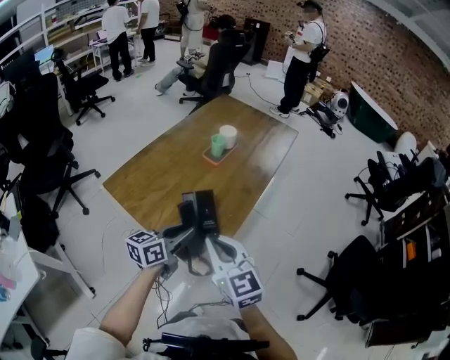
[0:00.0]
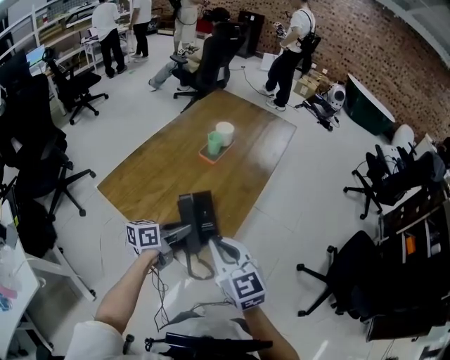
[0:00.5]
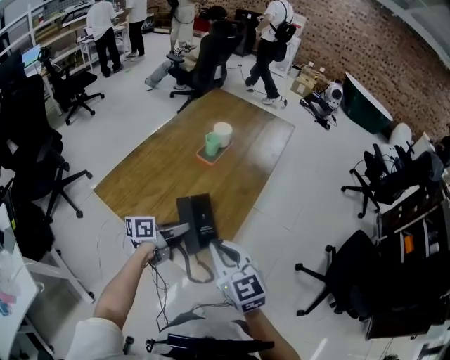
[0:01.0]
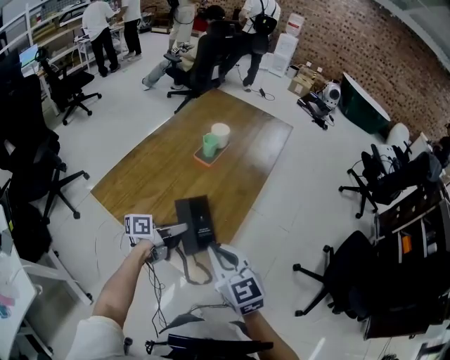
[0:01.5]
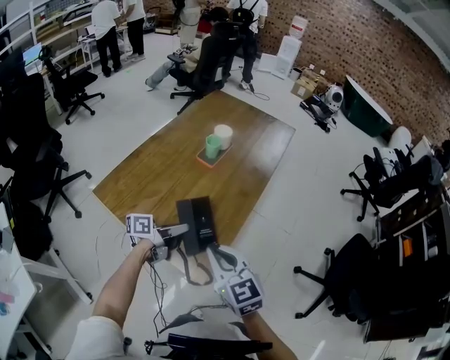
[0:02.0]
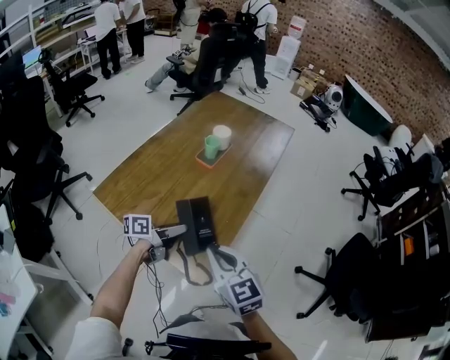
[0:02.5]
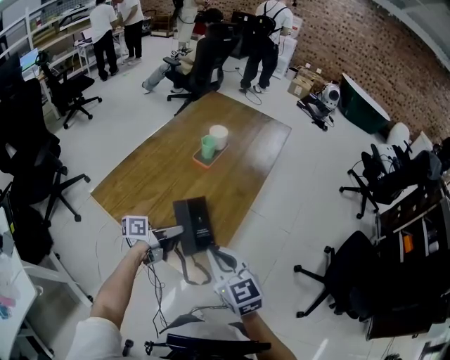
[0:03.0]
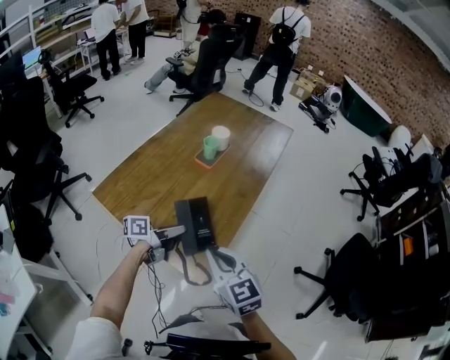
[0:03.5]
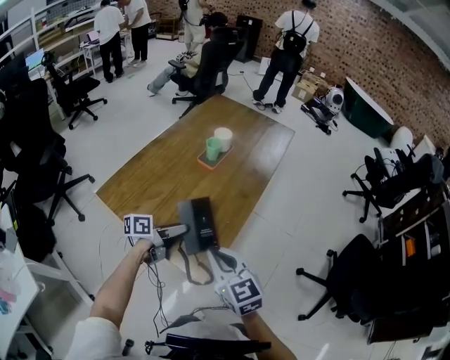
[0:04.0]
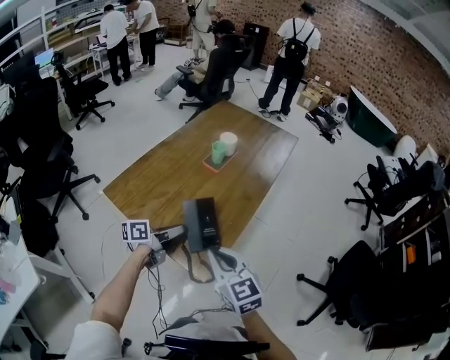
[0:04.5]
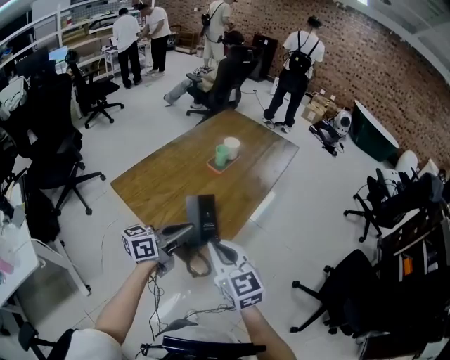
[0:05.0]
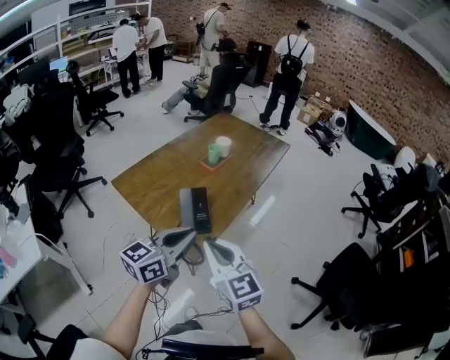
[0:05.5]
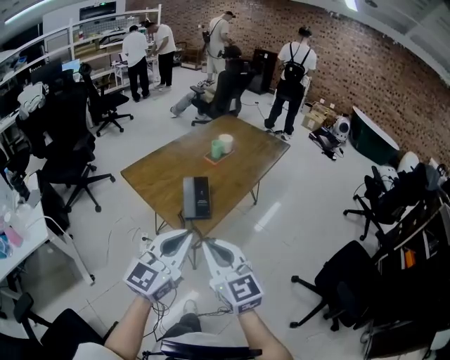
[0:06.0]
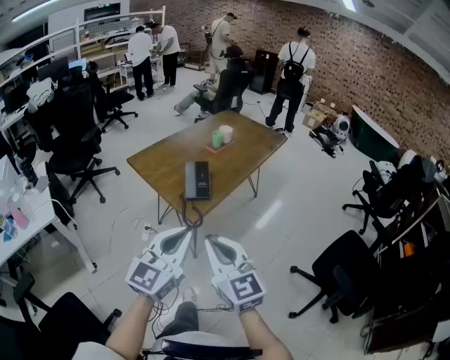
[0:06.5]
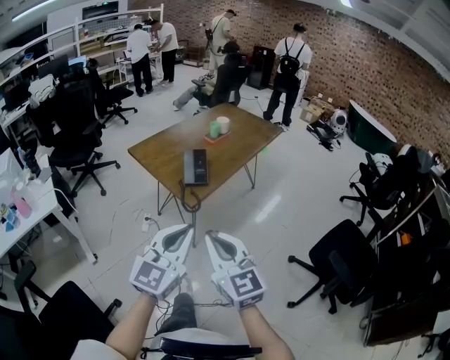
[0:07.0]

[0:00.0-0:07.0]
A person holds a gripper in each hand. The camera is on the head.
0:00.0 to 0:02.0: The left gripper travels downward and forward by roughly 10 cm, and changes its angle by roughly 30 degrees.
0:02.0 to 0:03.5: The grippers move only a little.
0:03.5 to 0:05.0: The left gripper goes approximately 20 cm upward and backward, rotates about 30 degrees, and closes its fingers; the right gripper heads upward, covering about 5 cm.
0:05.0 to 0:07.0: The two grippers go some 35 cm backward. The left gripper rolls clockwise, seen from behind, by roughly 50 degrees.

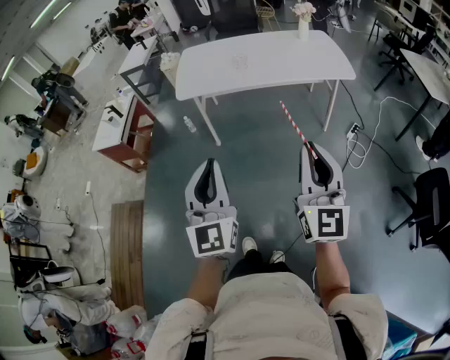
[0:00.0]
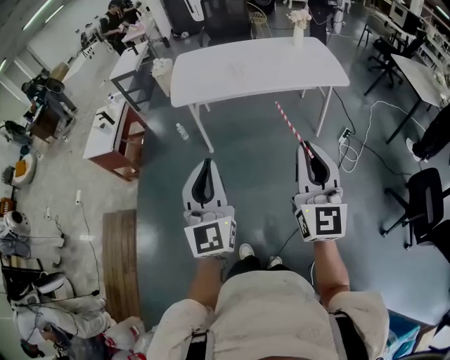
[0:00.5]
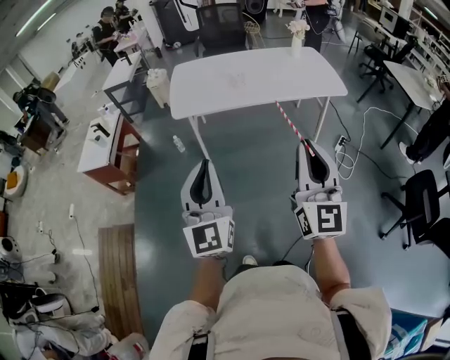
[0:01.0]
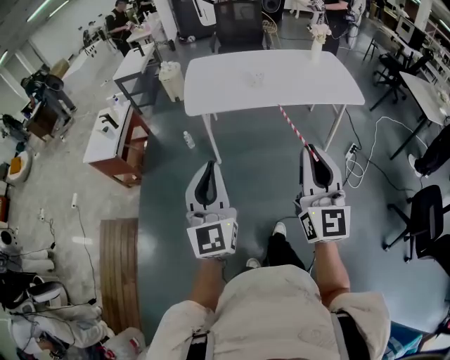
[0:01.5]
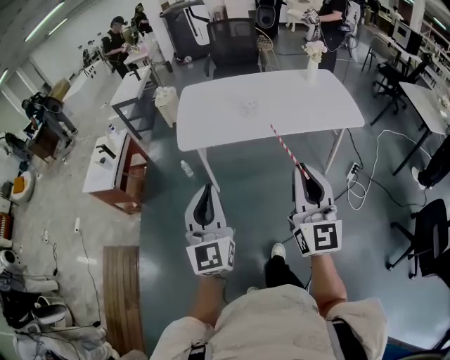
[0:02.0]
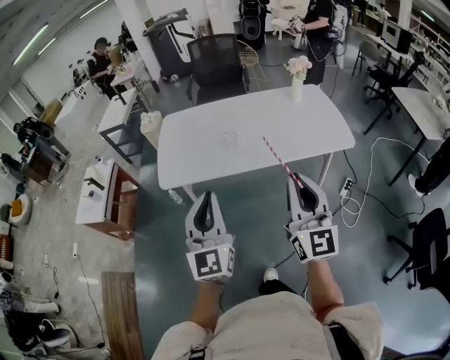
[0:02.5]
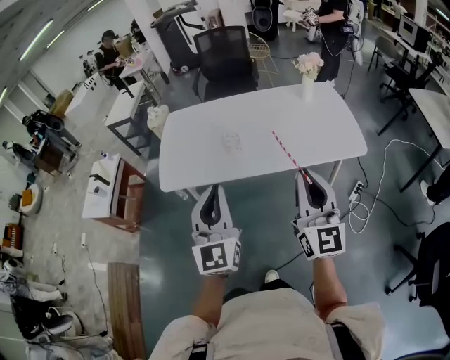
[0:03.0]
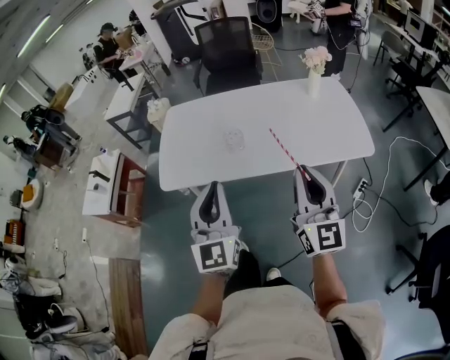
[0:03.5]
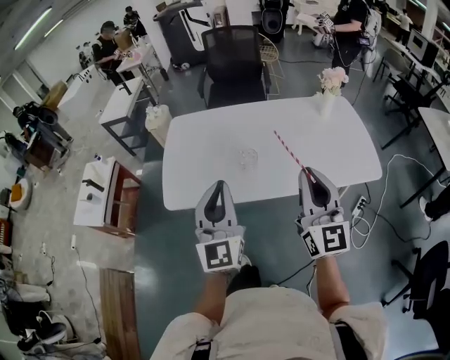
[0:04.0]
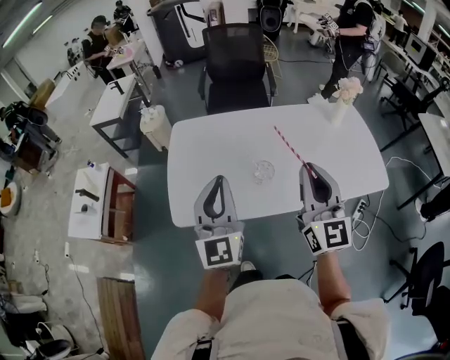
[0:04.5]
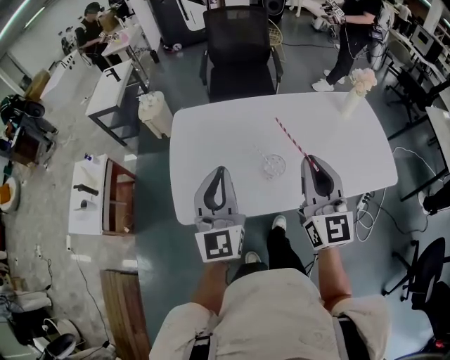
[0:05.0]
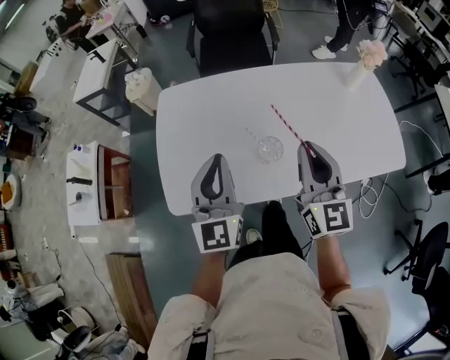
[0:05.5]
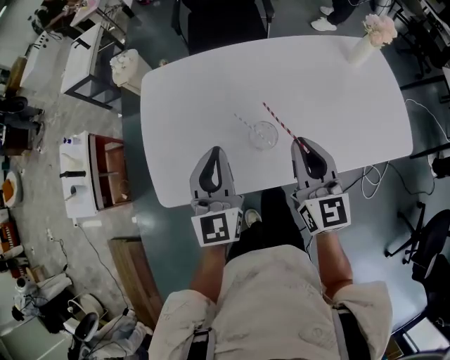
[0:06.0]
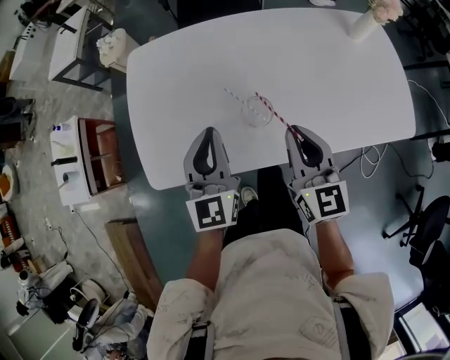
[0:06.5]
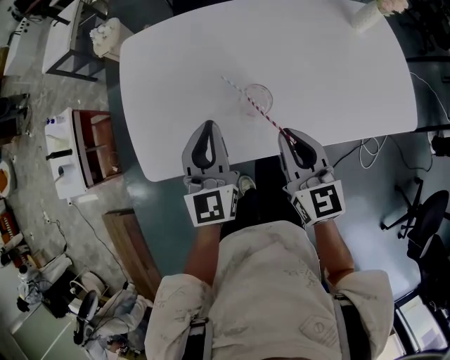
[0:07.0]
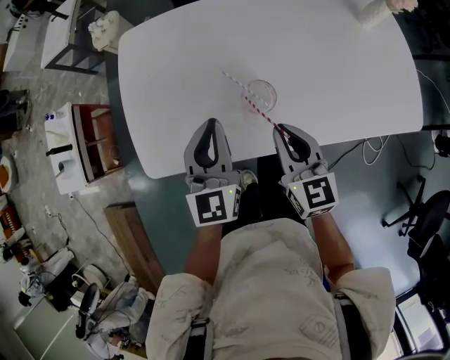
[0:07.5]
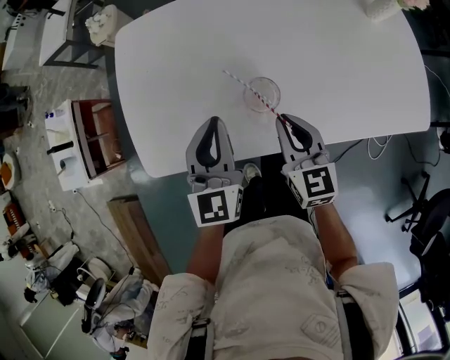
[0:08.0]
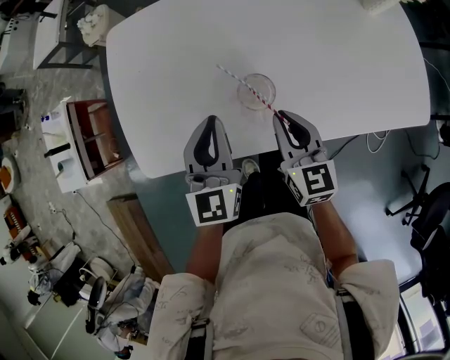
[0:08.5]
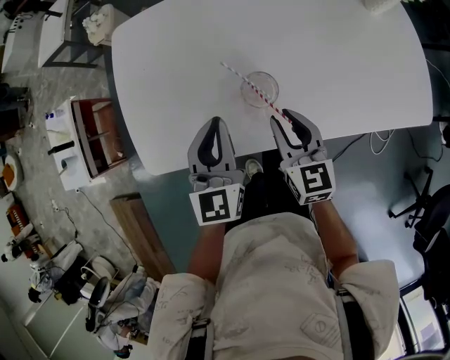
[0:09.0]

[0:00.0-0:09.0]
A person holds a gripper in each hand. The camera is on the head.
0:00.0 to 0:02.0: Both grippers move forward and to the left, some 25 cm.
0:02.0 to 0:04.5: The two grippers travel together, forward, approximately 50 cm.
0:04.5 to 0:07.0: The left gripper is displaced downward and forward by roughly 20 cm. Meanwhile the right gripper goes approximately 25 cm downward, and changes its angle by about 30 degrees.
0:07.0 to 0:09.0: The right gripper is displaced downward by about 10 cm.

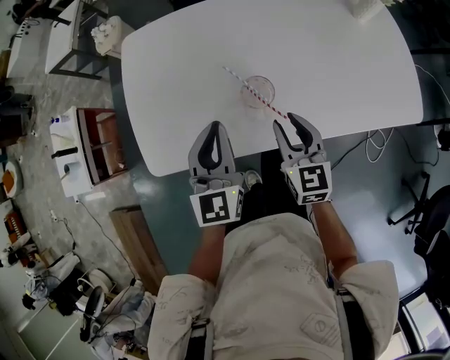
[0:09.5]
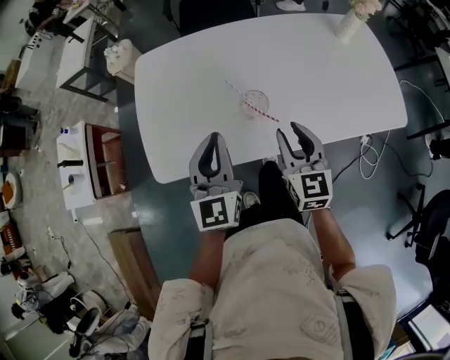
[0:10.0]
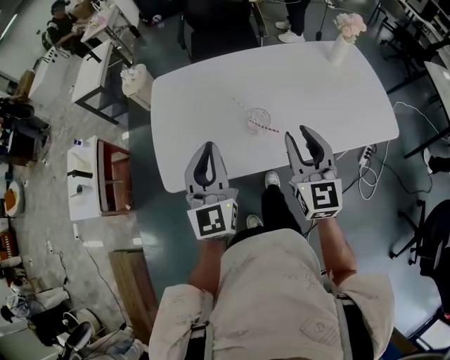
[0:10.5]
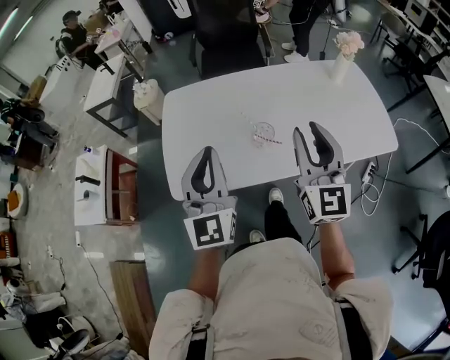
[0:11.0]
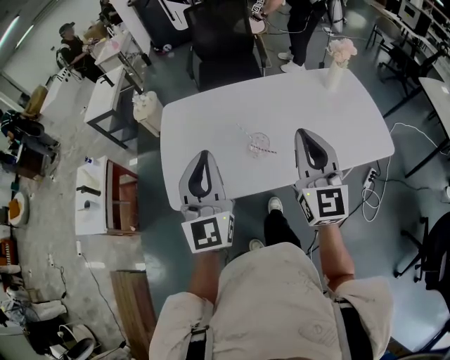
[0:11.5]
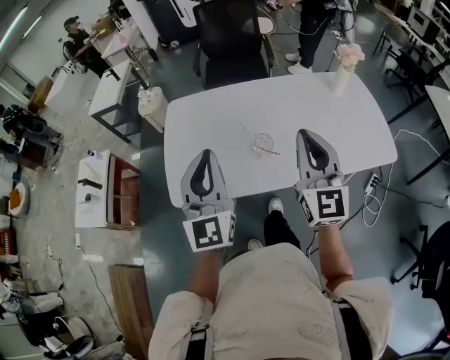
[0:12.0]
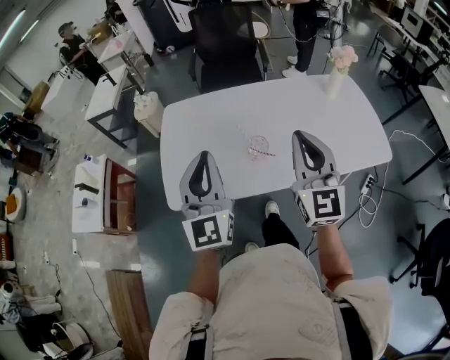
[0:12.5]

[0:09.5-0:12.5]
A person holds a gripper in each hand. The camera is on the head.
0:09.5 to 0:11.0: The right gripper heads upward, covering about 25 cm, and tips its fingers upward by about 30 degrees, while the left gripper travels upward and backward by some 20 cm, and swivels approximately 20 degrees.
0:11.0 to 0:12.5: The right gripper closes its fingers.

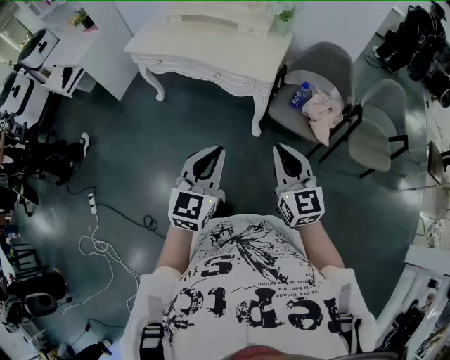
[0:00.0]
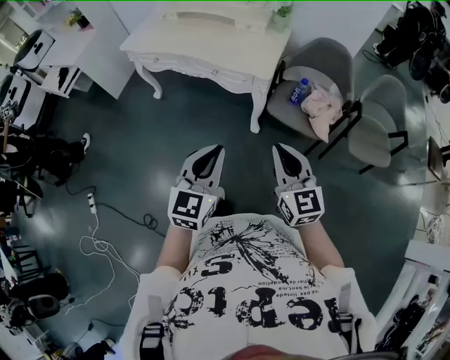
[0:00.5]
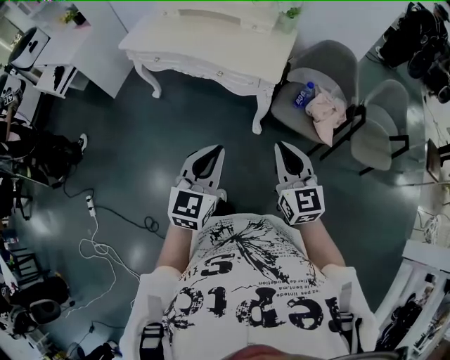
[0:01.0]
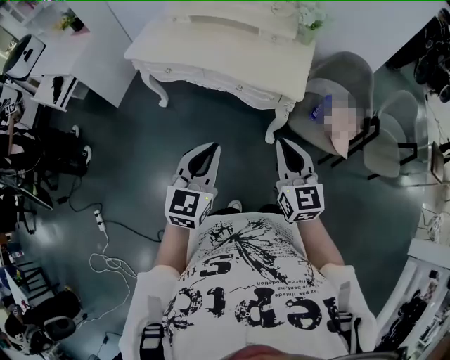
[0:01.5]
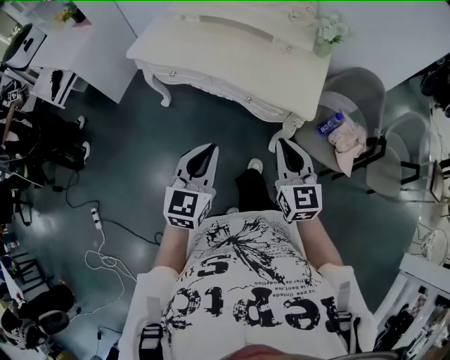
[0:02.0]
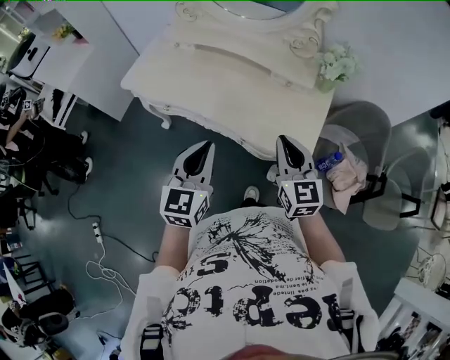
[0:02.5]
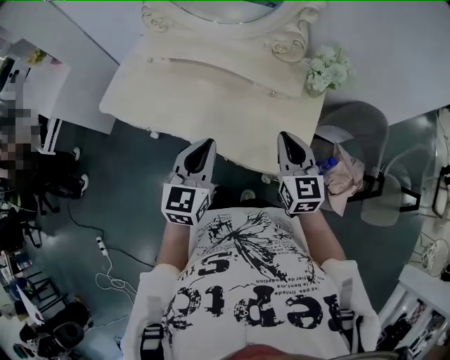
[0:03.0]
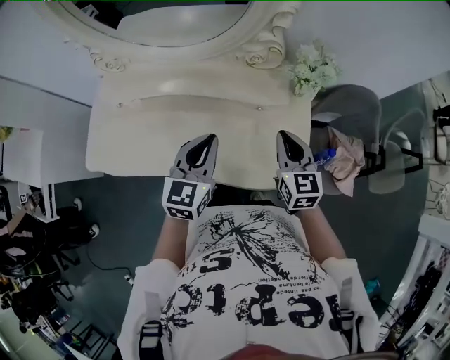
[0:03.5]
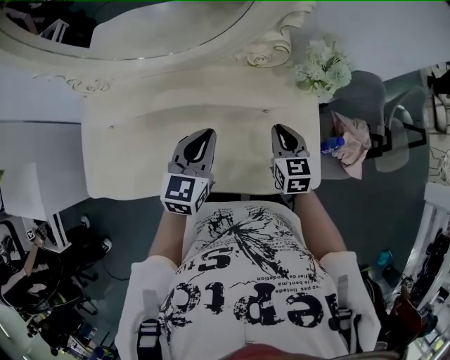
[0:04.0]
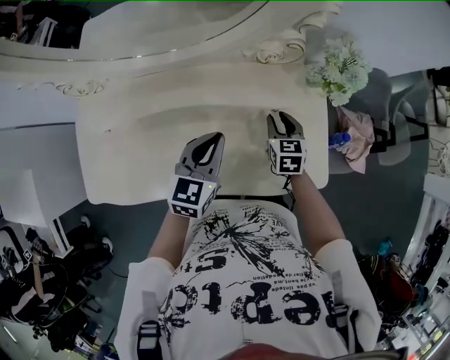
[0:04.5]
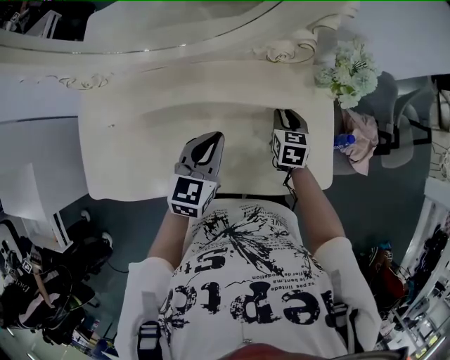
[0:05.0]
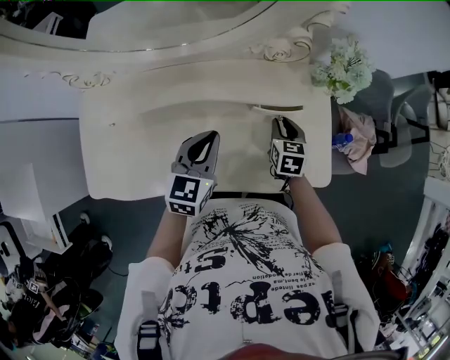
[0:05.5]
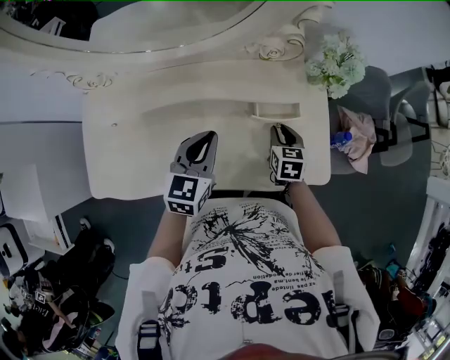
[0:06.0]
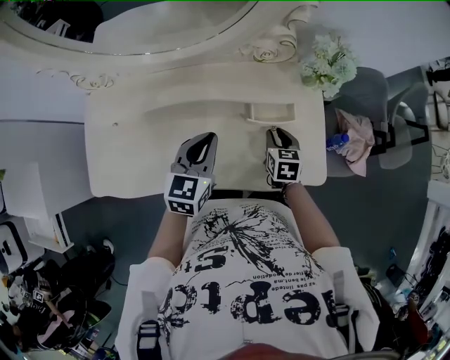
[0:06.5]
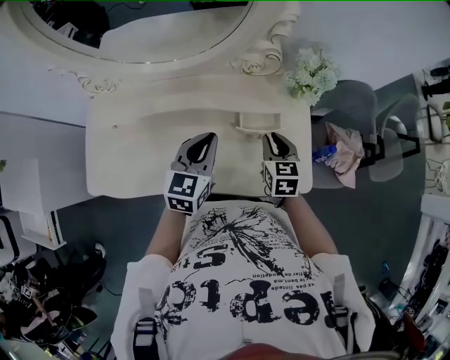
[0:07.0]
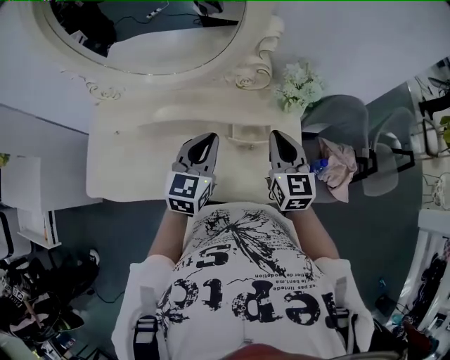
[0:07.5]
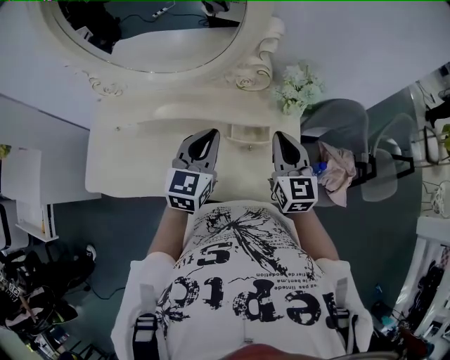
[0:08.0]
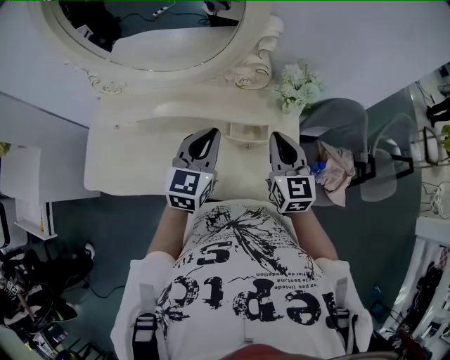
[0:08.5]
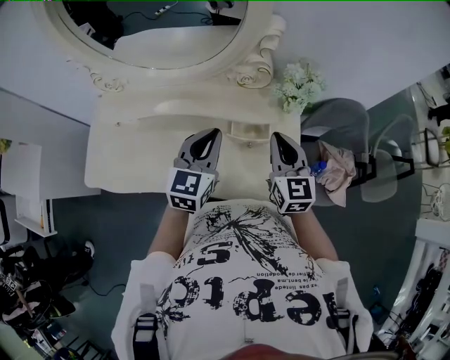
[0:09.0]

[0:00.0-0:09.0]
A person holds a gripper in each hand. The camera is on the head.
0:00.0 to 0:02.0: Both grippers travel together forward and to the left, roughly 30 cm.
0:02.0 to 0:04.5: The pair of grippers is taken approximately 50 cm. The left gripper rotates approximately 30 degrees. The right gripper turns by about 40 degrees, and opens its fingers.
0:04.5 to 0:07.0: The right gripper goes roughly 10 cm upward and backward; the left gripper changes place by about 5 cm.
0:07.0 to 0:09.0: The left gripper heads upward, covering roughly 5 cm. Meanwhile the right gripper is displaced upward by roughly 15 cm, and turns by about 30 degrees.
